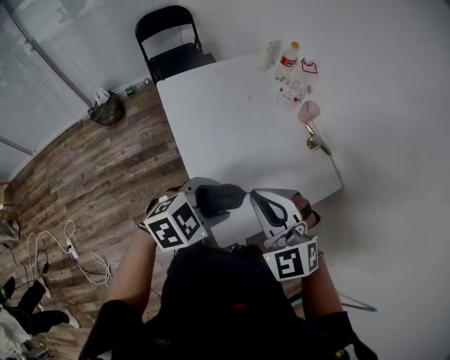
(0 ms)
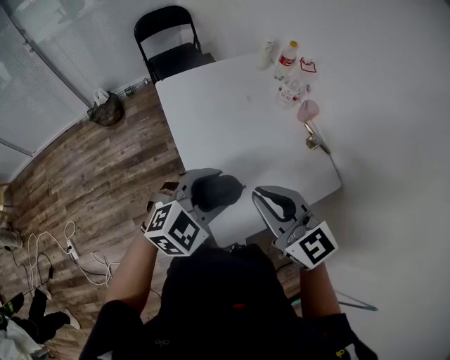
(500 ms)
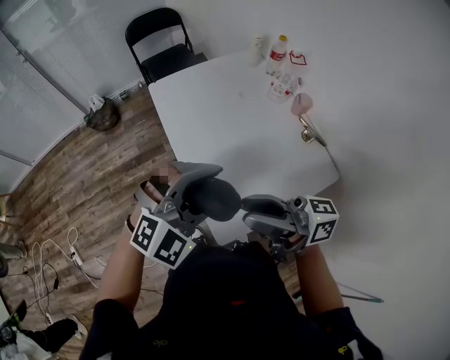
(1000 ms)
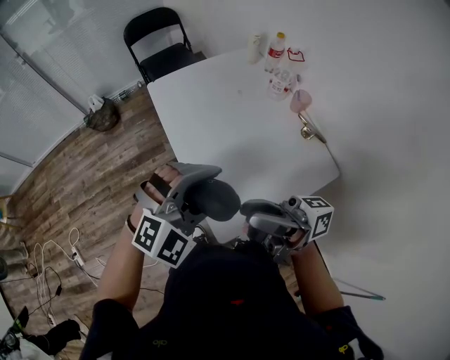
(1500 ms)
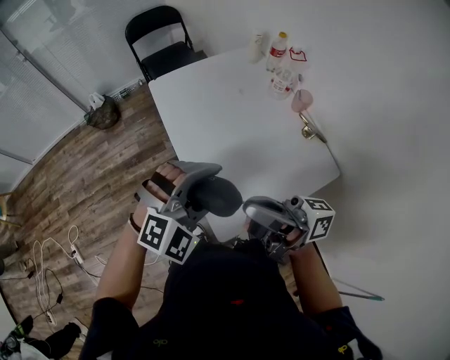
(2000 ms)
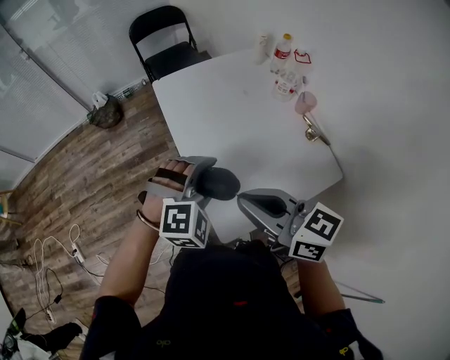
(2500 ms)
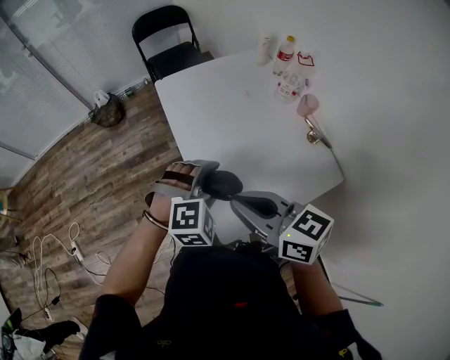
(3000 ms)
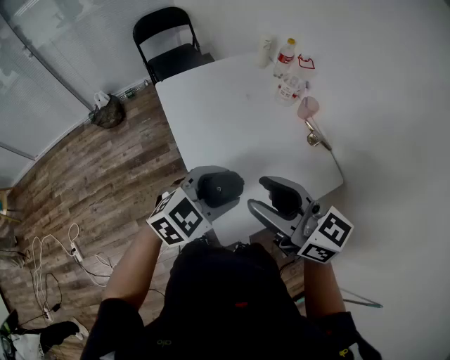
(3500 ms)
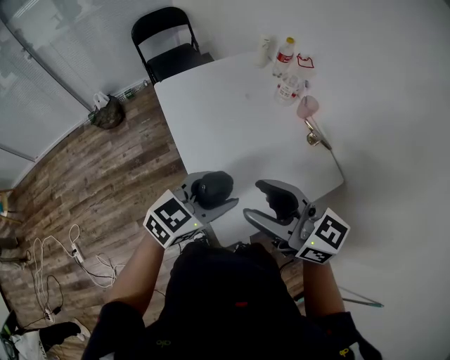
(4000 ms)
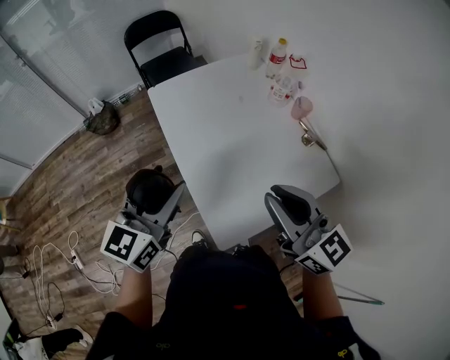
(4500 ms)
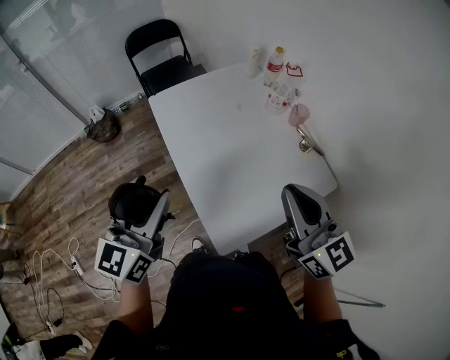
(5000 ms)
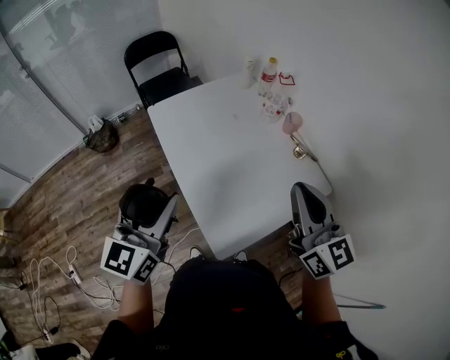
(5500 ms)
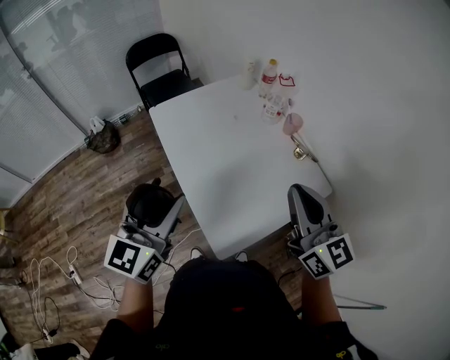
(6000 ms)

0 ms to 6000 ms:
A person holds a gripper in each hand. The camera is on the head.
0 ms to 2000 ms: The right gripper moves roughly 5 cm, rotates around the line of its fingers by about 100 degrees, clockwise from behind, and opens and closes again. Meanwhile the left gripper is displaced upward by roughly 5 cm, and changes its angle by some 40 degrees.
2000 ms to 4000 ms: The left gripper rotates around the line of its fingers by some 50 degrees, counterclockwise from behind. The right gripper rotates around the line of its fingers by some 40 degrees, counterclockwise from behind, and opens its fingers.
4000 ms to 6000 ms: The left gripper is displaced to the left and upward by some 15 cm, and changes its angle by approximately 40 degrees. The right gripper goes about 10 cm to the right, changes its angle by approximately 40 degrees, and closes.

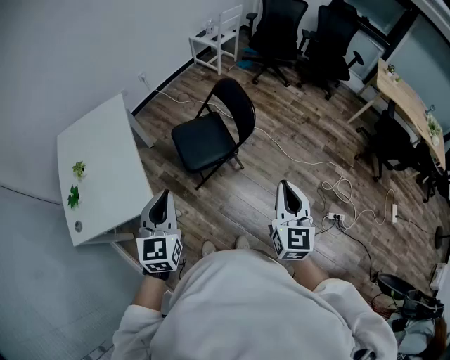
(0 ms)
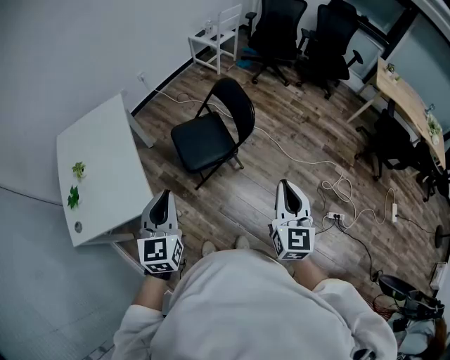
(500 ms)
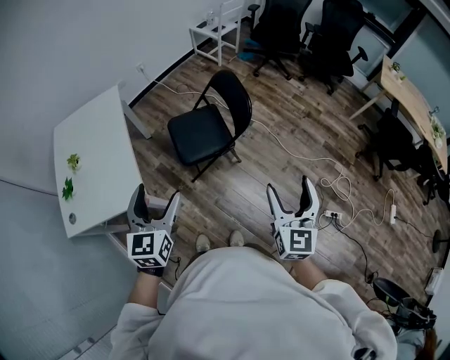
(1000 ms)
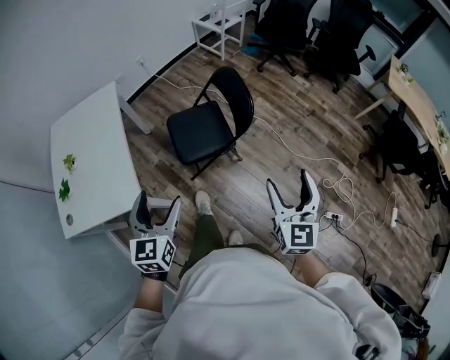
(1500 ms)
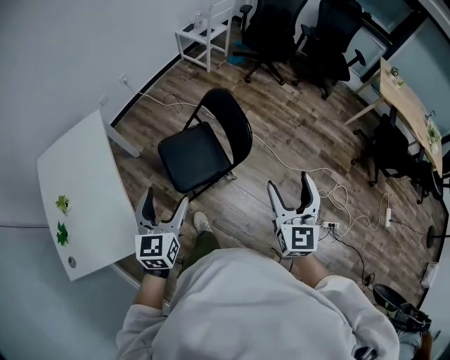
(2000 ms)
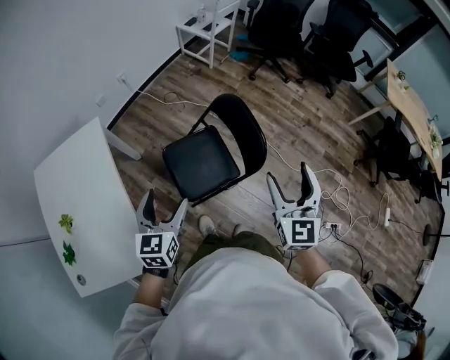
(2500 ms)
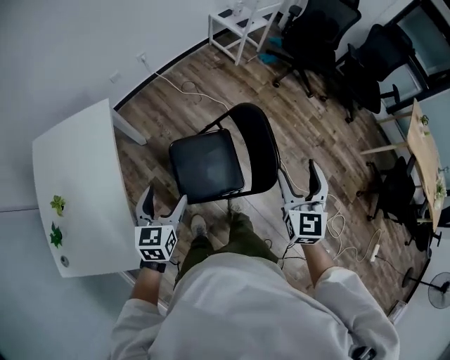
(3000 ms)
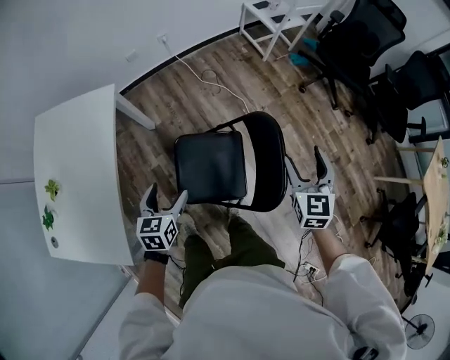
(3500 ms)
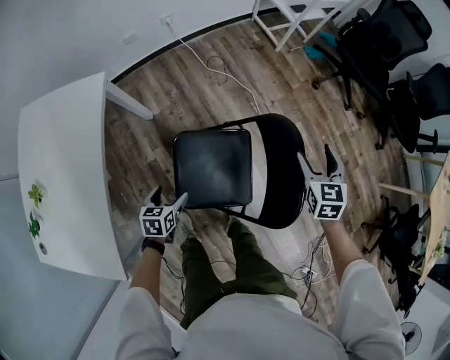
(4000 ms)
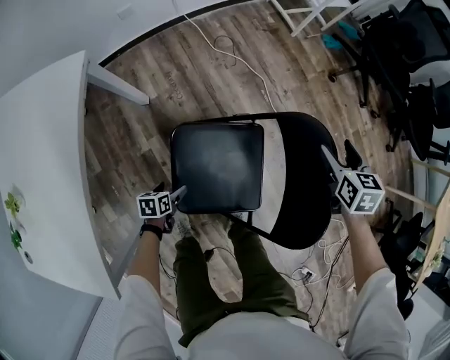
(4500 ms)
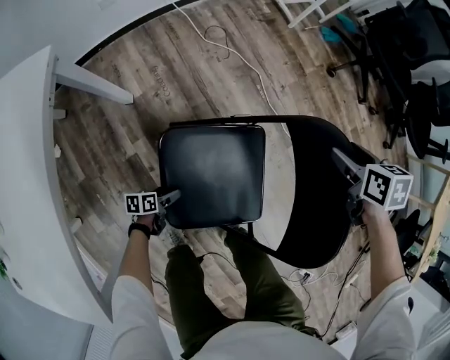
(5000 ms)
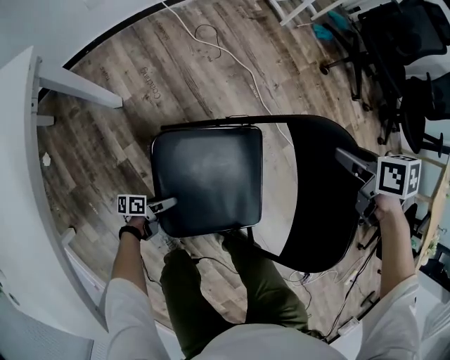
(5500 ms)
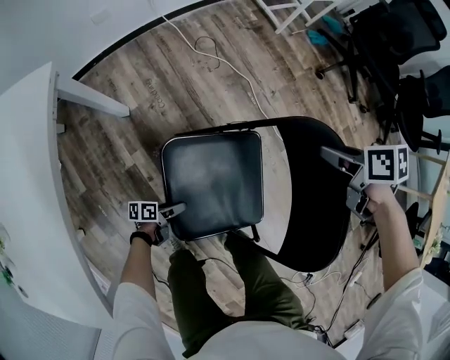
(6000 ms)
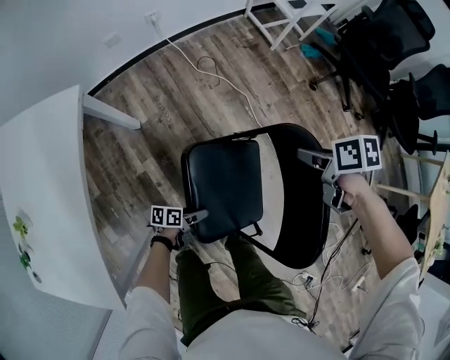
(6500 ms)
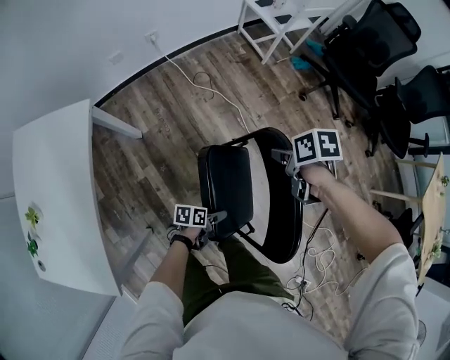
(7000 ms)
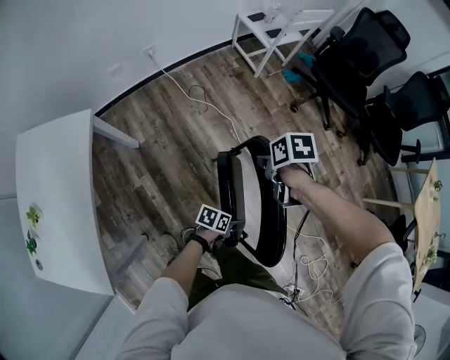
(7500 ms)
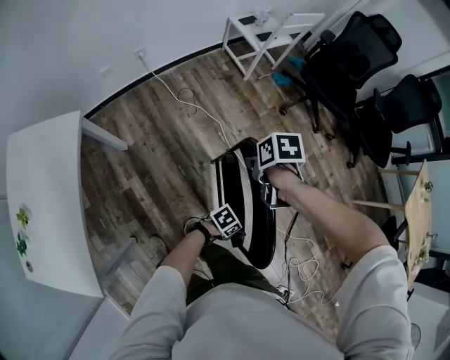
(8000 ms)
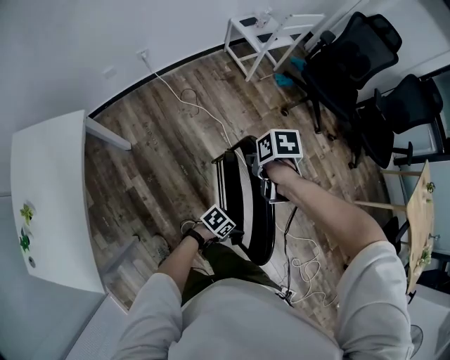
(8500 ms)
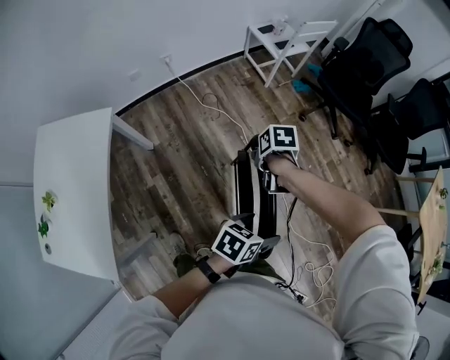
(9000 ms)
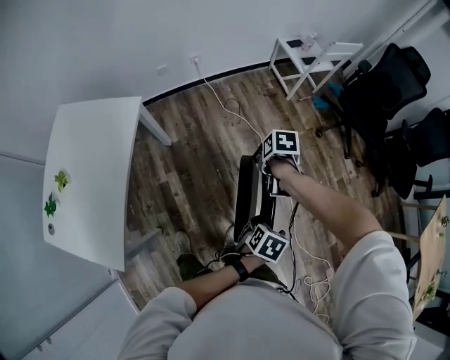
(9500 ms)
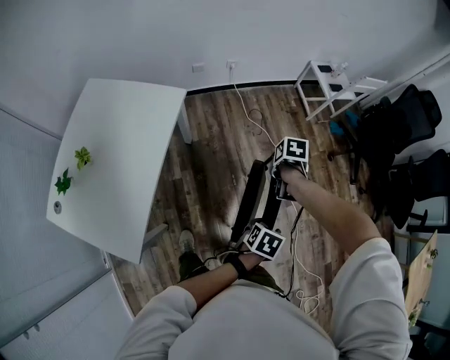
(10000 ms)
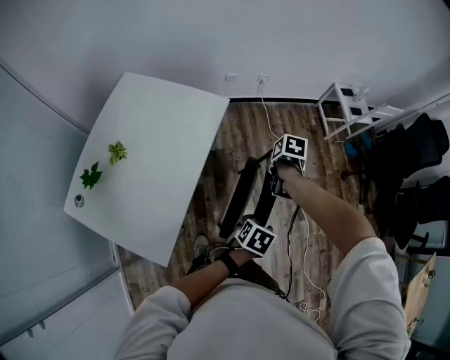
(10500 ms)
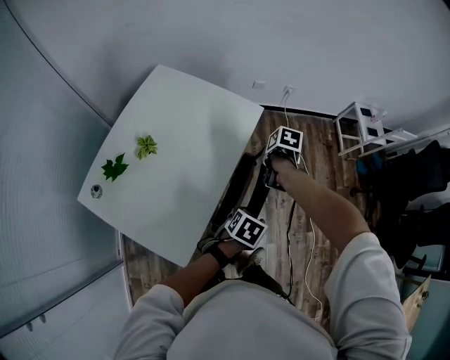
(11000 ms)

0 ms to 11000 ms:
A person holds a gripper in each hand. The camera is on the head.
0 ms to 2000 ms: Both grippers move forward, roughly 20 cm. The right gripper opens up, while the left gripper opens its fingers.
2000 ms to 3500 ms: The left gripper goes roughly 30 cm forward and downward, and swivels about 30 degrees. Meanwhile the right gripper heads forward, covering roughly 40 cm, and rotates approximately 30 degrees.
3500 ms to 5500 ms: The left gripper travels downward by about 60 cm, and turns by approximately 70 degrees. Meanwhile the right gripper heads downward and forward, covering roughly 35 cm, tips its fingers downward by about 40 degrees, and closes up.
5500 ms to 7500 ms: The left gripper shifts approximately 35 cm upward, and swivels roughly 30 degrees, while the right gripper is displaced upward by about 20 cm.
7500 ms to 9000 ms: The left gripper shifts roughly 25 cm upward.
9000 ms to 11000 ms: The two grippers travel together, about 50 cm. The left gripper turns by some 30 degrees, and closes up.

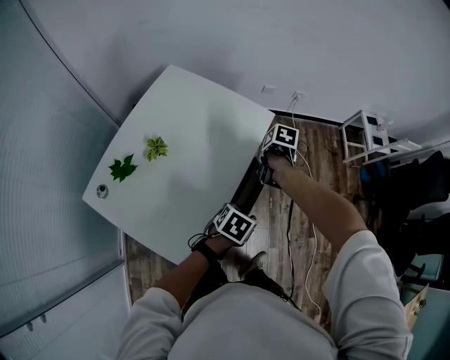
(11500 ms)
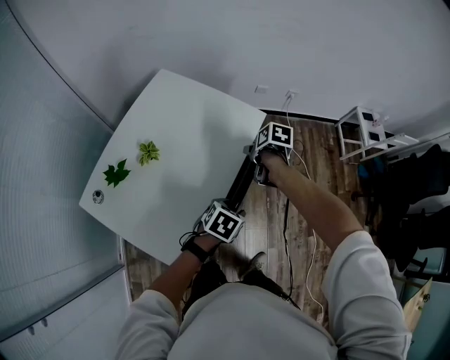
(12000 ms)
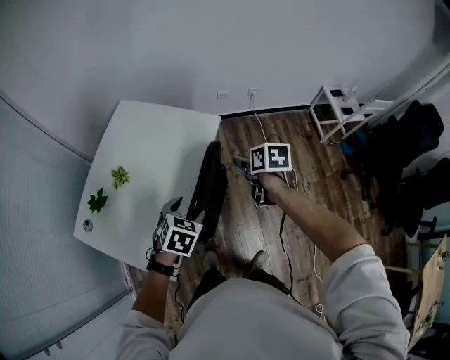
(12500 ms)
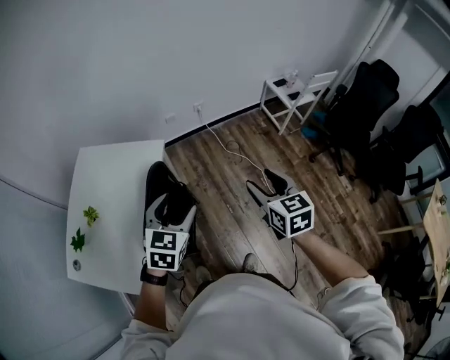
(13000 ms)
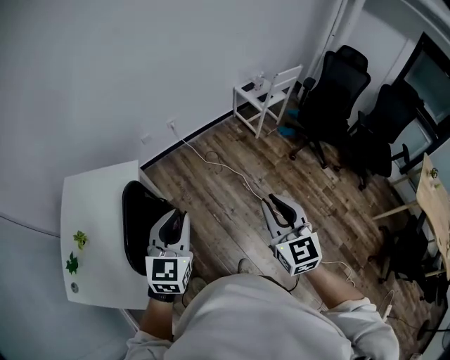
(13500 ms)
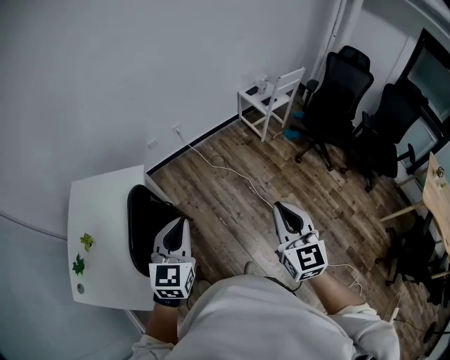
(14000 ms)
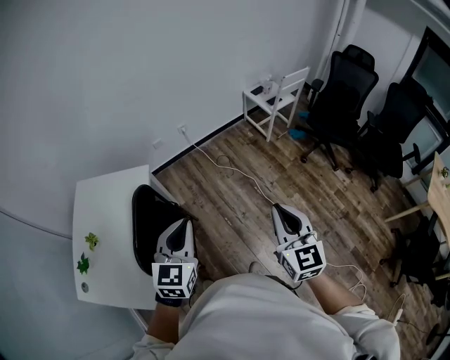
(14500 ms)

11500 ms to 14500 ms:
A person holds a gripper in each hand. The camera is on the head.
11500 ms to 13000 ms: The left gripper travels upward by some 20 cm, and turns by about 40 degrees. Meanwhile the right gripper shifts by roughly 50 cm, and points its fingers approximately 50 degrees further upward.
13000 ms to 14500 ms: The left gripper heads to the right, upward and backward, covering about 15 cm, and closes, while the right gripper goes roughly 20 cm to the right, backward and upward, swivels some 20 degrees, and closes its fingers.

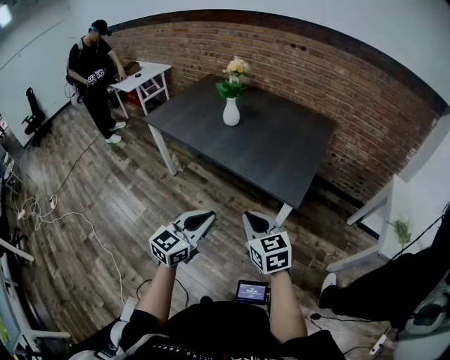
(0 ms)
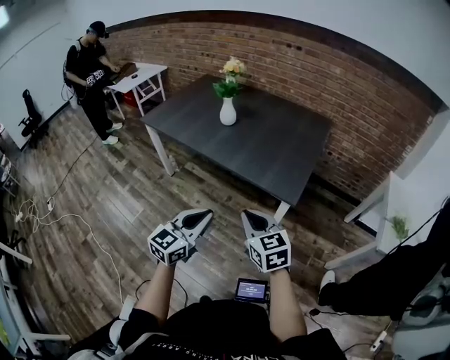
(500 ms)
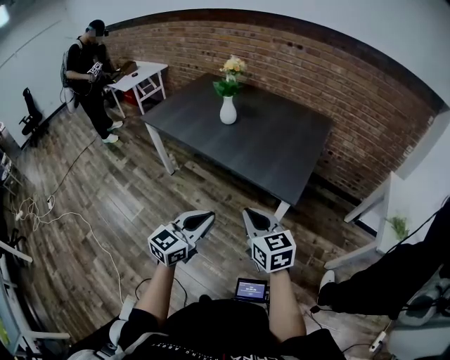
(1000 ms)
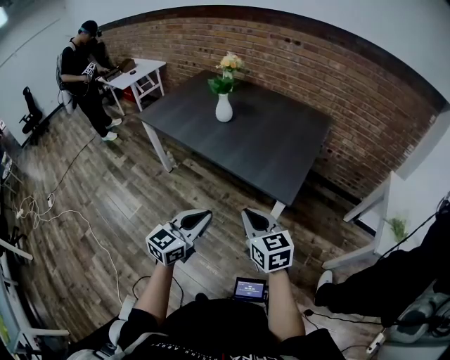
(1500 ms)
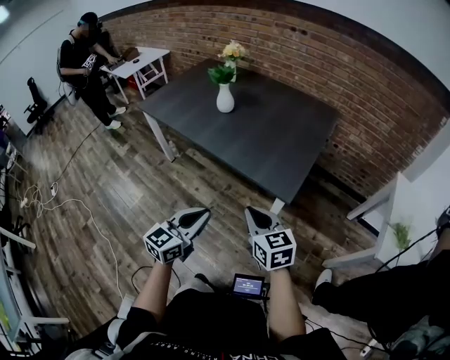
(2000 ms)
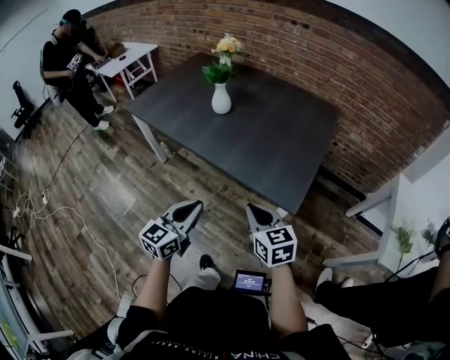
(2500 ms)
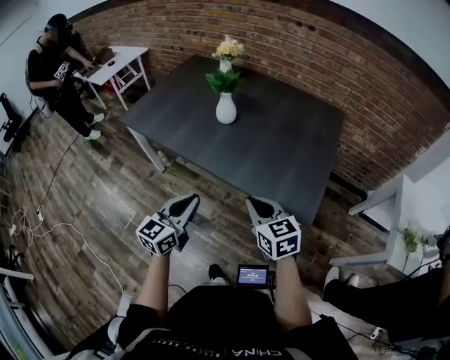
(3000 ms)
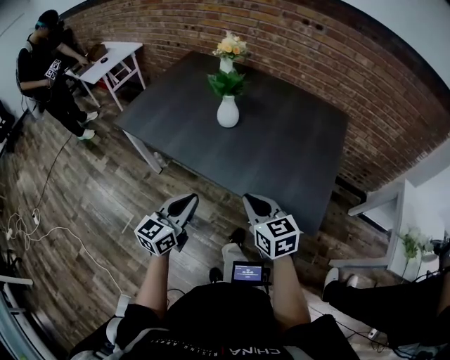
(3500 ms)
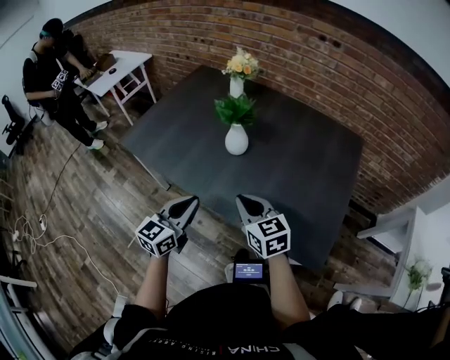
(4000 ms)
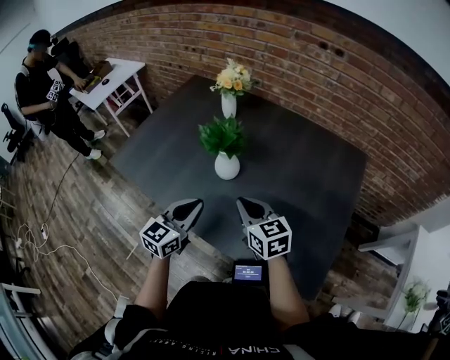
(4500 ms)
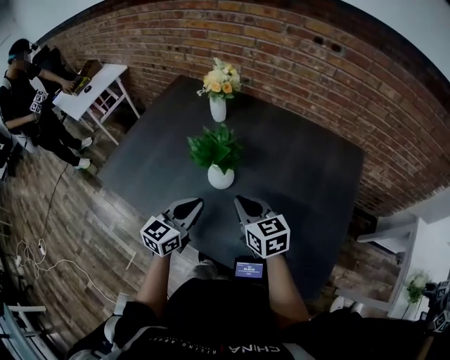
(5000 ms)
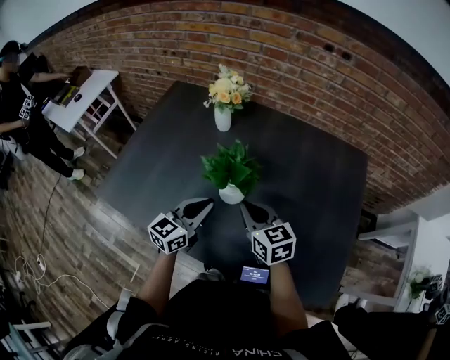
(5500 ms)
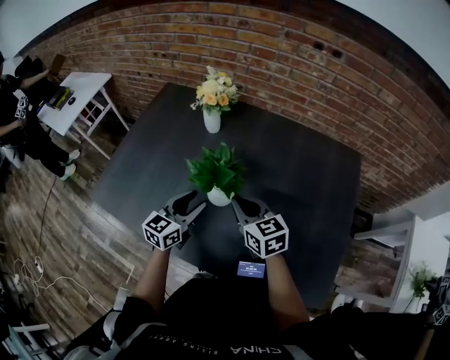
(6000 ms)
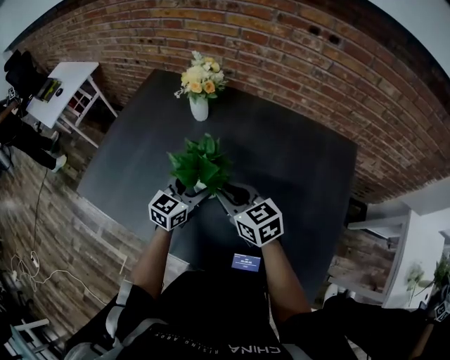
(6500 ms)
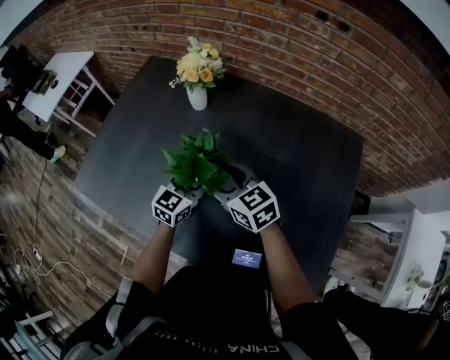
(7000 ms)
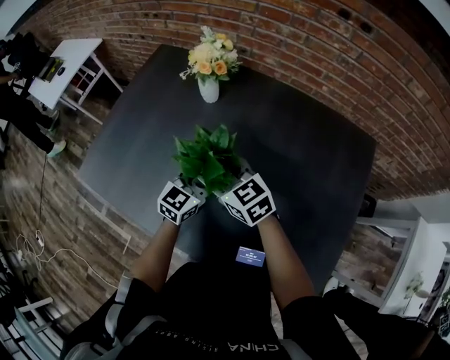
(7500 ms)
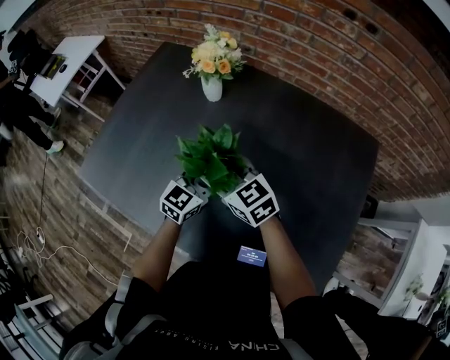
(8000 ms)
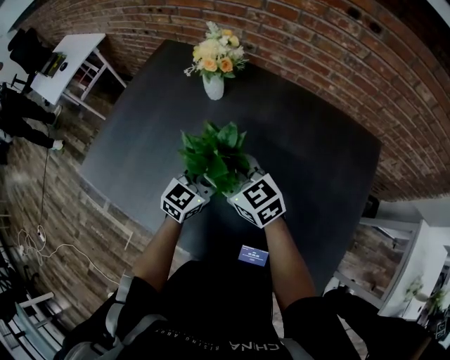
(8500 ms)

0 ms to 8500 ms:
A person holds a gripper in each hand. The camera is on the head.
0 ms to 2000 ms: The left gripper moves approximately 5 cm. The right gripper moves to the right, some 5 cm.
2000 ms to 4000 ms: The two grippers travel together, forward and to the left, roughly 40 cm.
4000 ms to 6500 ms: Both grippers travel together forward, roughly 30 cm. The left gripper opens.
6500 ms to 8500 ms: The right gripper is displaced forward by approximately 5 cm, and opens its fingers.
